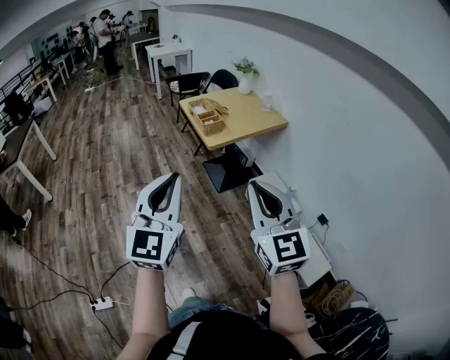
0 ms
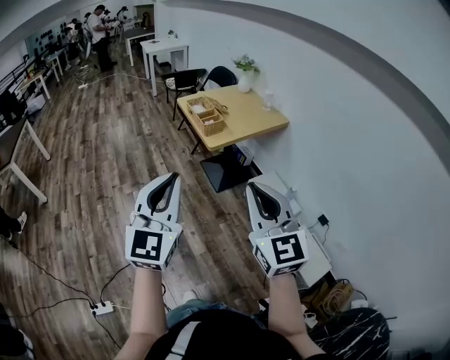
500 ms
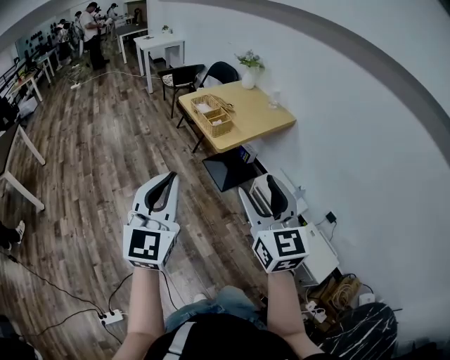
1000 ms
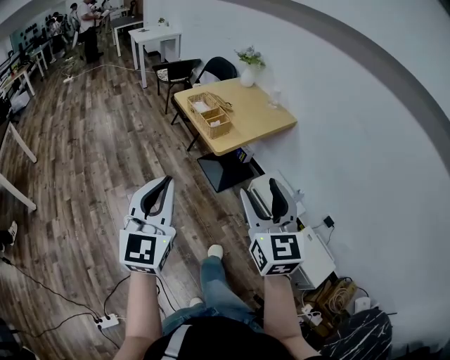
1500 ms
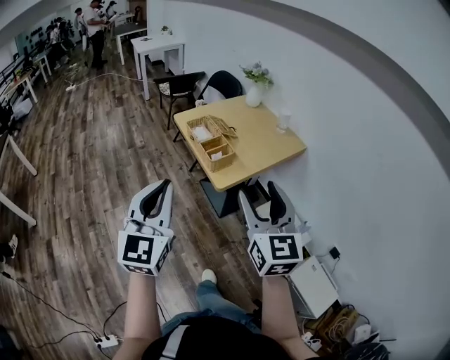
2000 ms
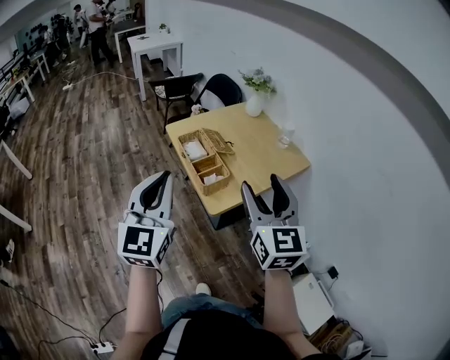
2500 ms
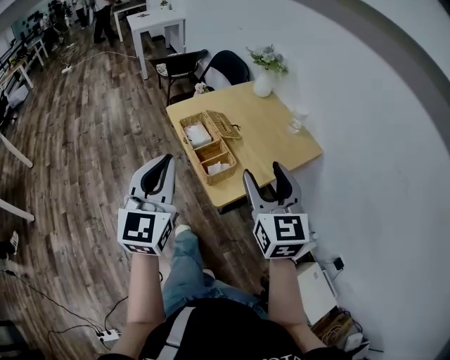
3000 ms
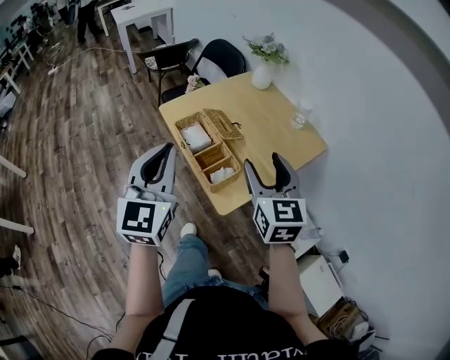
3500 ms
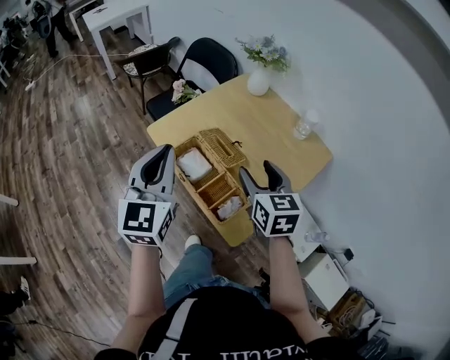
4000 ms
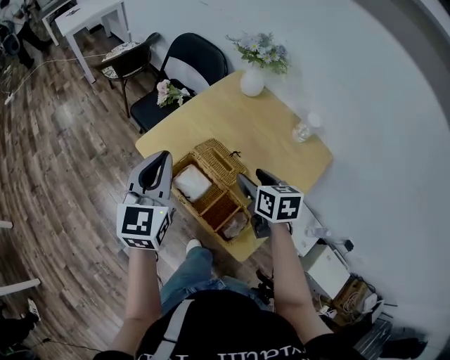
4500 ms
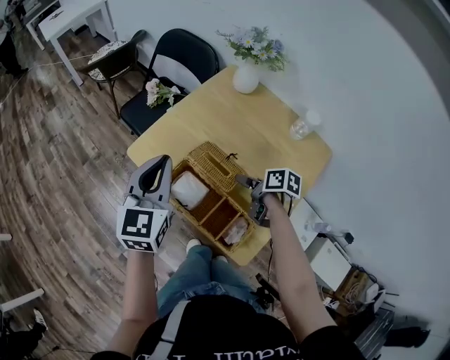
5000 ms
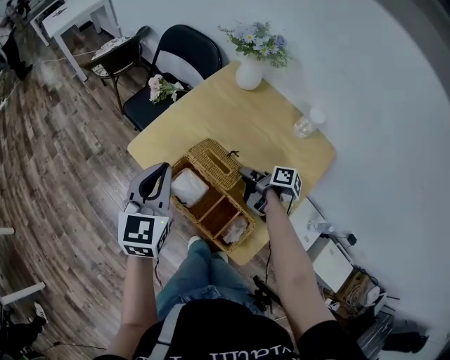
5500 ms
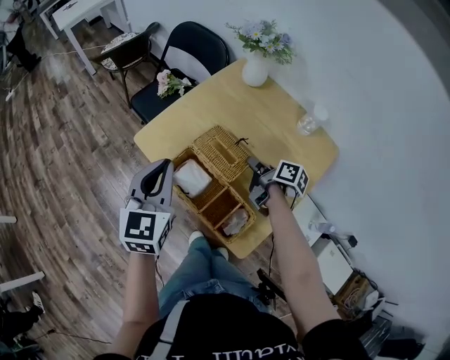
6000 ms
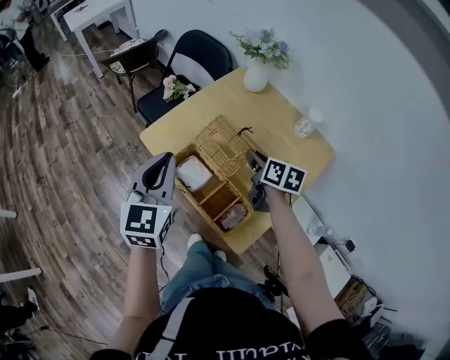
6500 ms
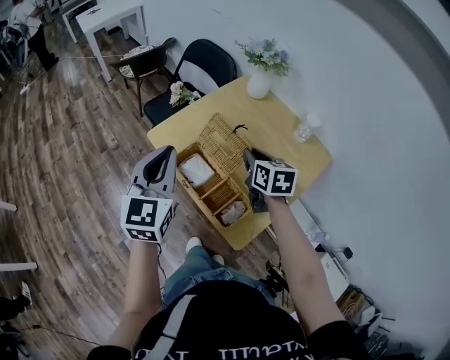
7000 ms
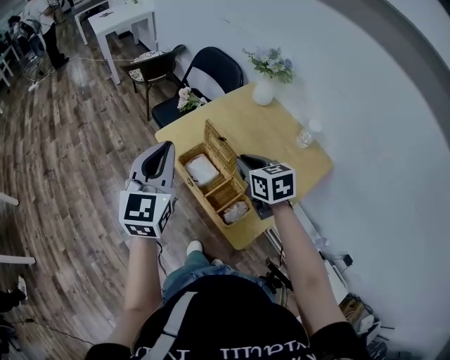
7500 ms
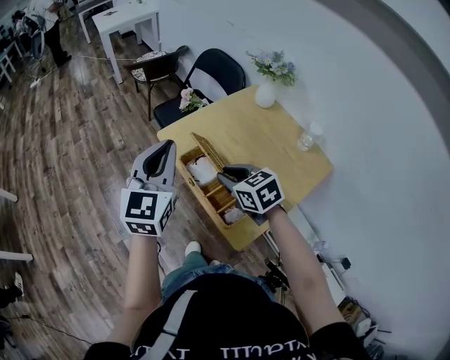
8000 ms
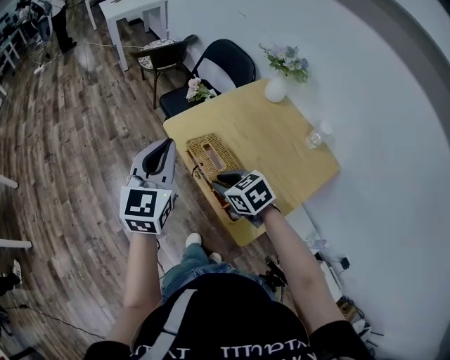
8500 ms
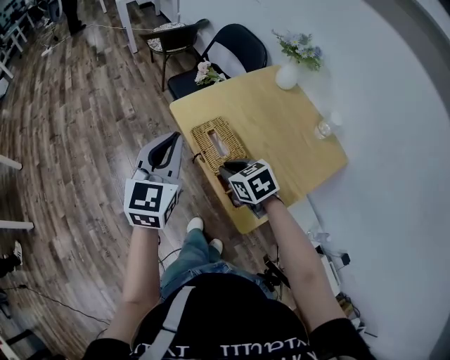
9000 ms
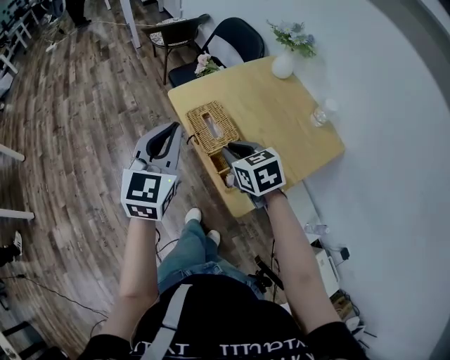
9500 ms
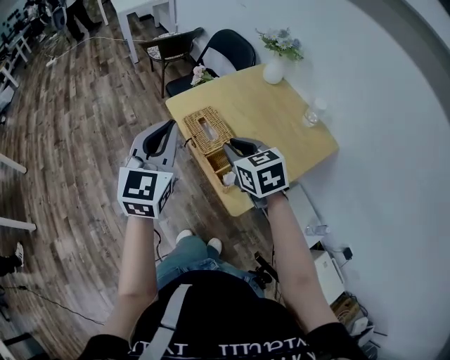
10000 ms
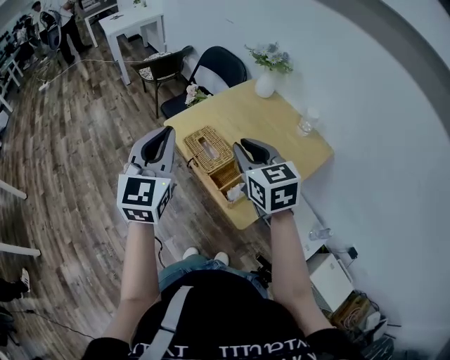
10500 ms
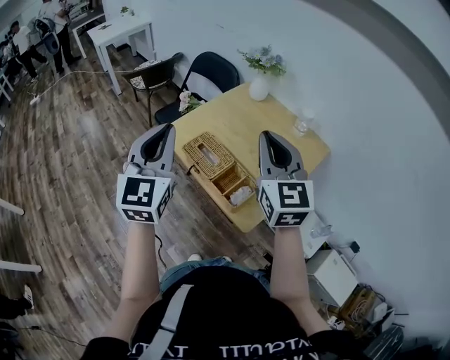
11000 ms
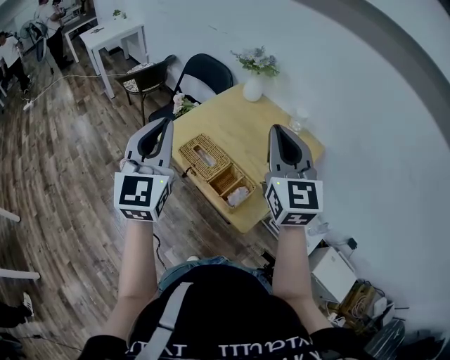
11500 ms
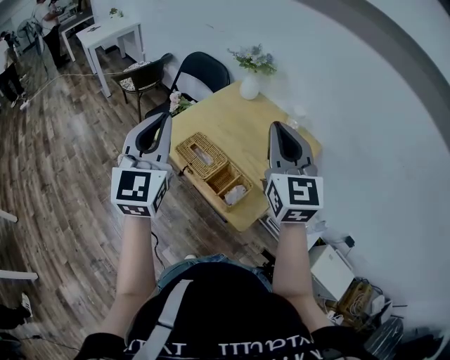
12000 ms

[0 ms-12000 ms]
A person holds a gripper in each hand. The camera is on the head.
0 ms to 2000 ms: Both grippers move forward, about 35 cm. The right gripper opens.
2000 ms to 4000 ms: Both grippers are carried forward, roughly 50 cm. The right gripper rotates approximately 30 degrees.
4000 ms to 6000 ms: The left gripper heads downward and forward, covering approximately 15 cm. Meanwhile the right gripper travels downward and forward by about 20 cm, rolls clockwise, seen from behind, by about 70 degrees, and closes.
6000 ms to 8000 ms: The right gripper moves to the left, upward and backward, about 25 cm, and rolls counterclockwise, seen from behind, by approximately 80 degrees. The left gripper is displaced upward and backward by some 15 cm.
8000 ms to 10000 ms: The grippers both shift backward by some 10 cm.
10000 ms to 12000 ms: The right gripper heads upward, covering approximately 20 cm, and tips its fingers upward by about 40 degrees. The left gripper travels upward by about 10 cm.

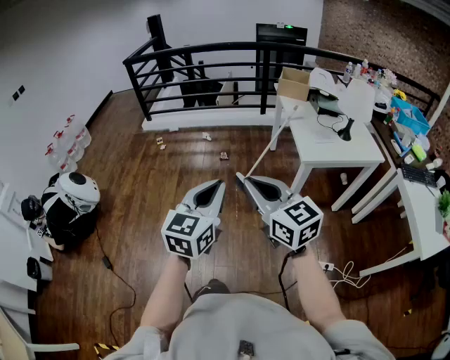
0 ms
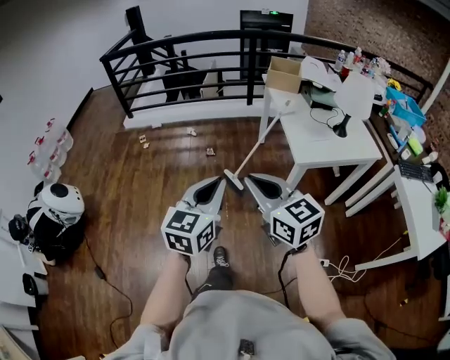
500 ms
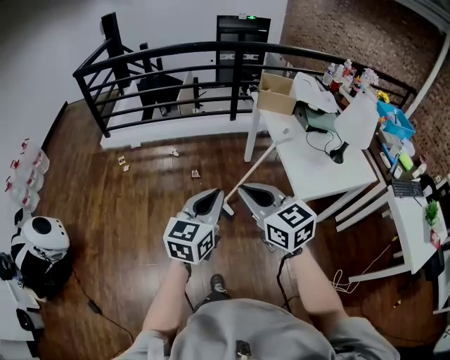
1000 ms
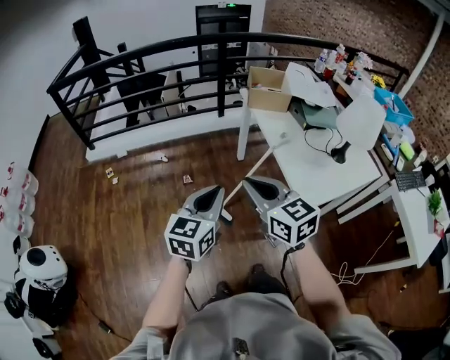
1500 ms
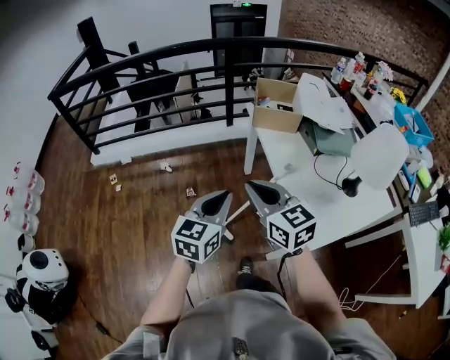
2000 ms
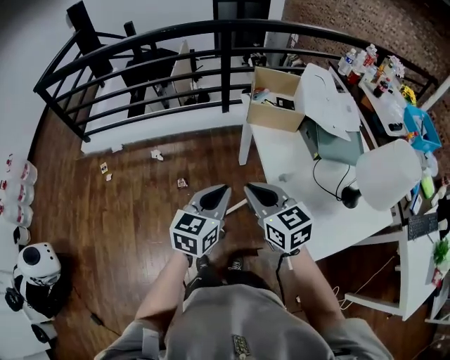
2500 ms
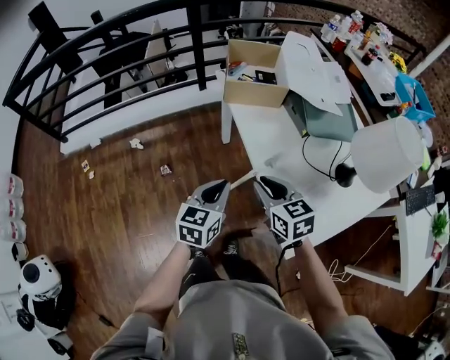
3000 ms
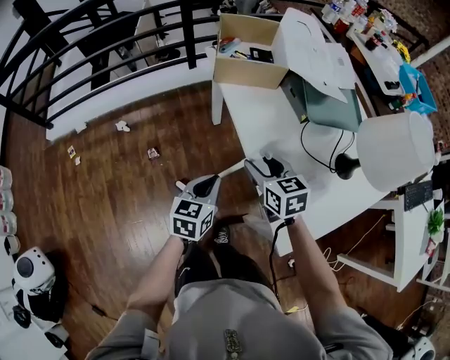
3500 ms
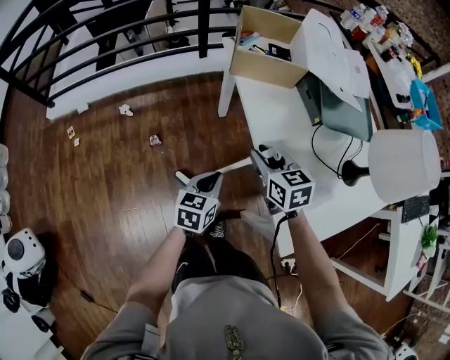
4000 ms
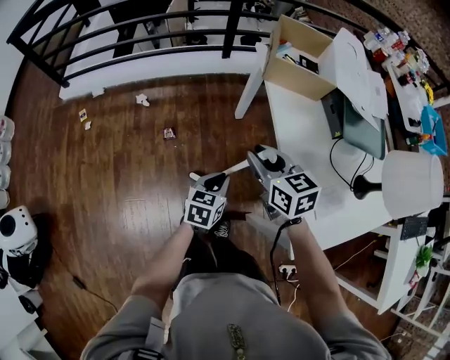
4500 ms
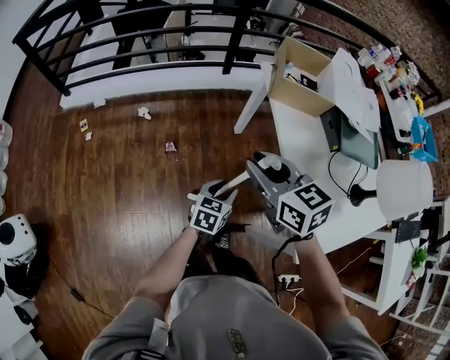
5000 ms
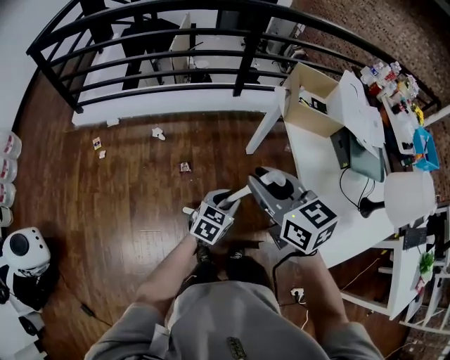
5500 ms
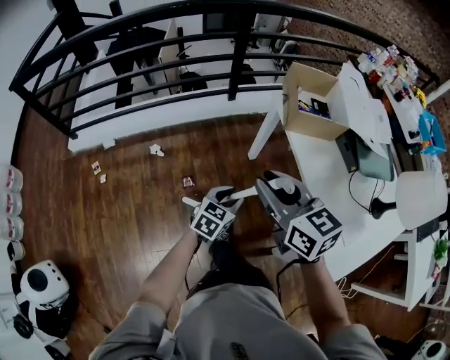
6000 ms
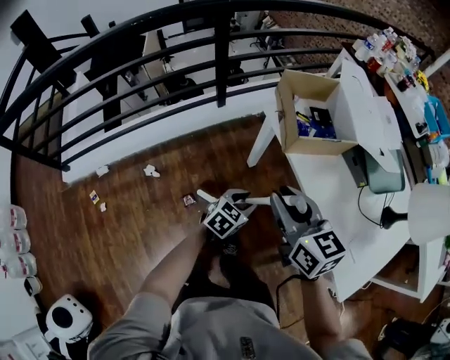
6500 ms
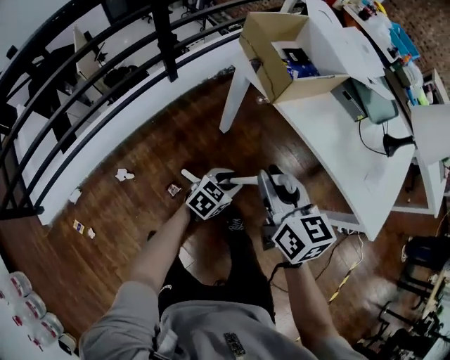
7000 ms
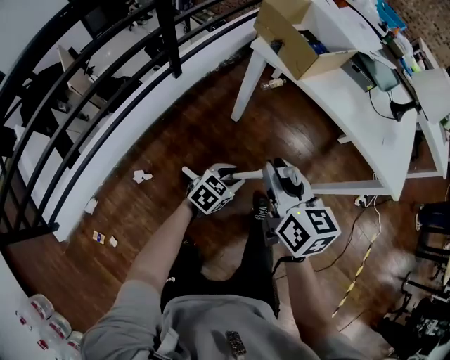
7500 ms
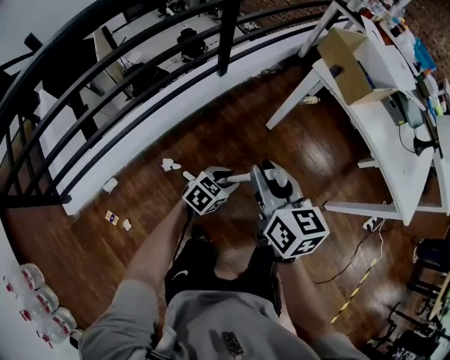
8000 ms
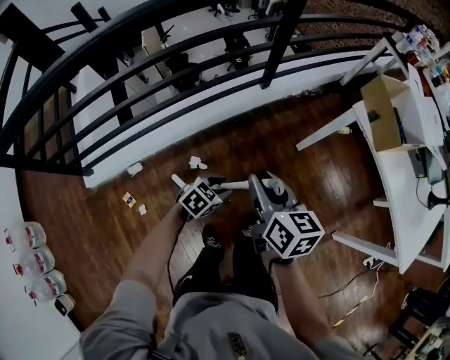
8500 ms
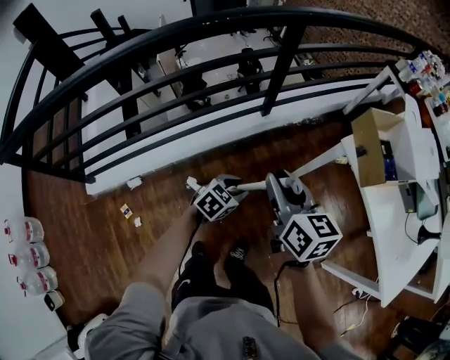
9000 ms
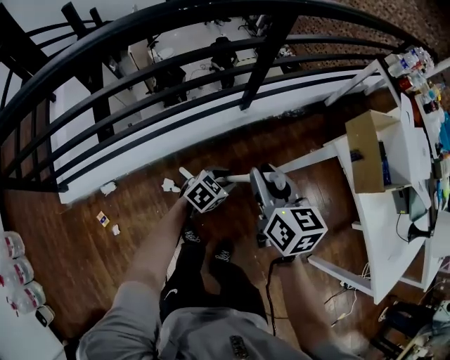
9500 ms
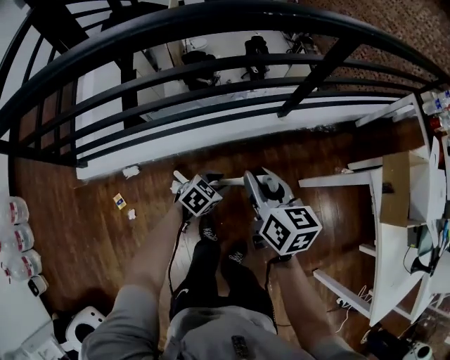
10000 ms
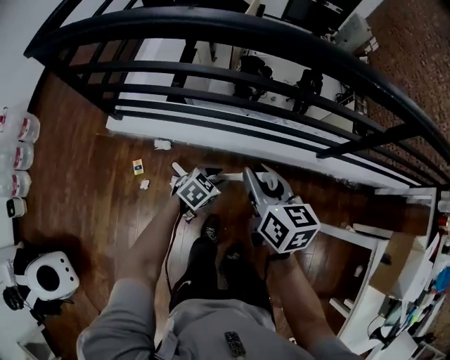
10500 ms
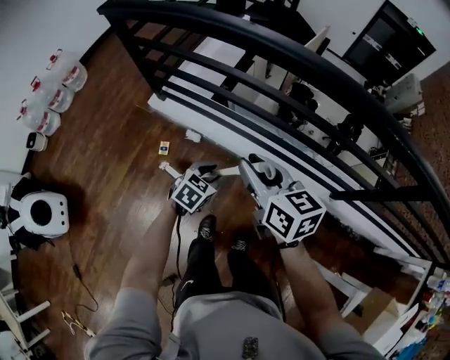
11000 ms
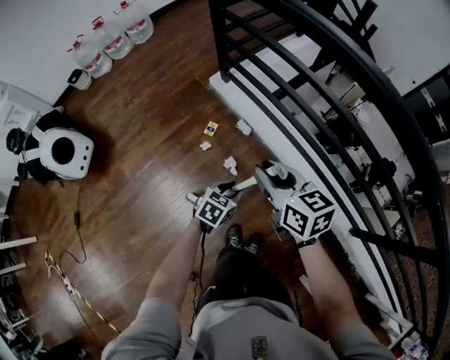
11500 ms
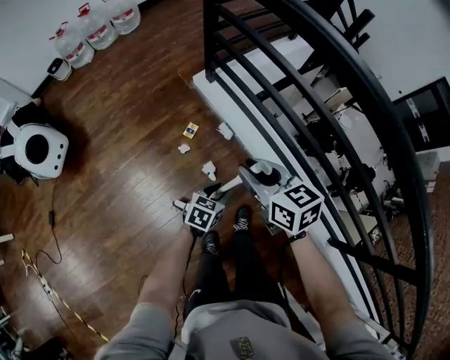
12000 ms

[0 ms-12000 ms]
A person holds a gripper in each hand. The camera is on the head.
0 ms to 2000 ms: The pair of grippers is taken forward, about 60 cm.
2000 ms to 4000 ms: The left gripper travels downward and forward by roughly 30 cm, and swivels approximately 20 degrees, while the right gripper heads downward, forward and to the right, covering roughly 30 cm, swivels some 20 degrees, and opens its fingers.
4000 ms to 6000 ms: The left gripper is displaced to the left and forward by some 15 cm, and opens. Meanwhile the right gripper is displaced to the left and upward by about 30 cm.
6000 ms to 8000 ms: The right gripper moves approximately 35 cm, and changes its angle by about 40 degrees. The left gripper moves about 35 cm, and rotates about 40 degrees.
8000 ms to 10000 ms: The right gripper goes upward and returns, roughly 5 cm each way, and rotates about 30 degrees. Meanwhile the left gripper travels upward and back again, approximately 10 cm each way, and rotates some 30 degrees.
10000 ms to 12000 ms: The left gripper reaches approximately 10 cm upward, then returns, and rotates some 90 degrees; the right gripper moves roughly 10 cm upward and comes back, and changes its angle by some 90 degrees.

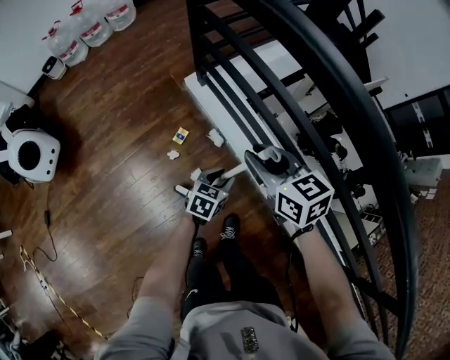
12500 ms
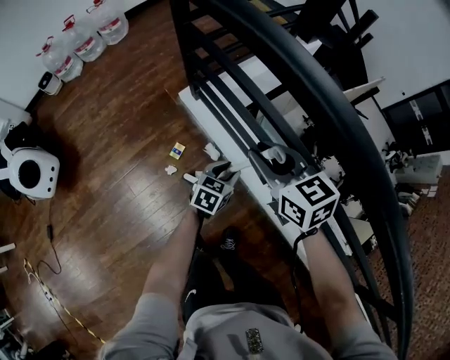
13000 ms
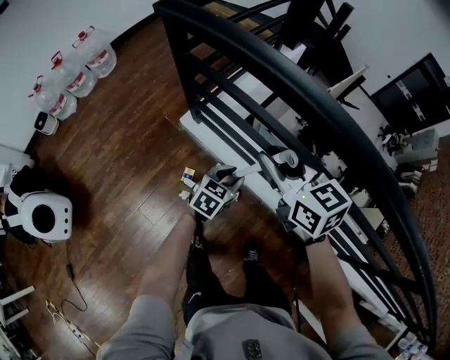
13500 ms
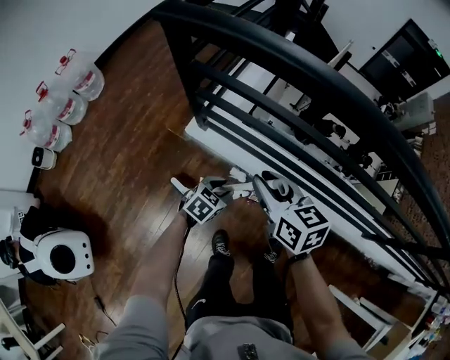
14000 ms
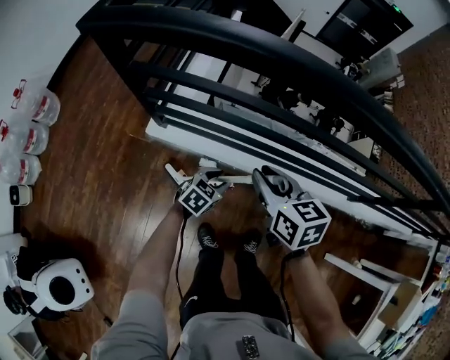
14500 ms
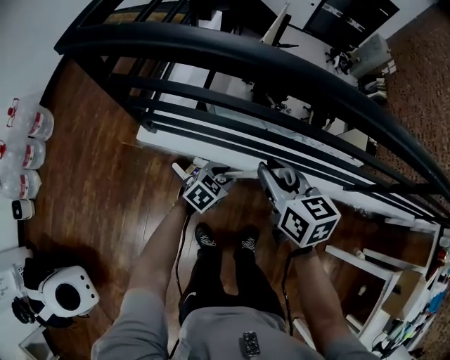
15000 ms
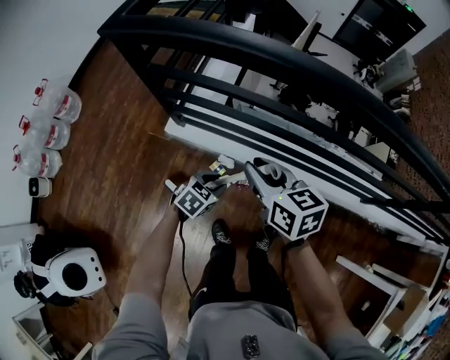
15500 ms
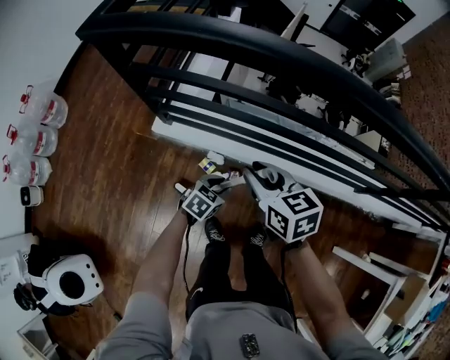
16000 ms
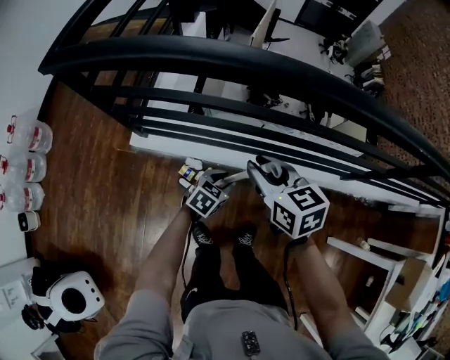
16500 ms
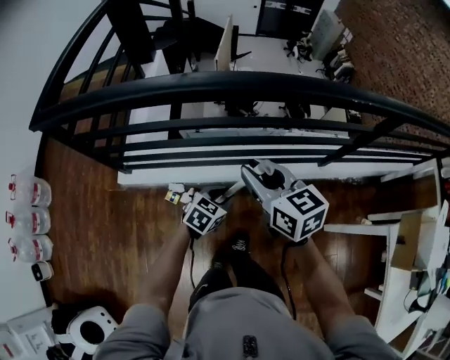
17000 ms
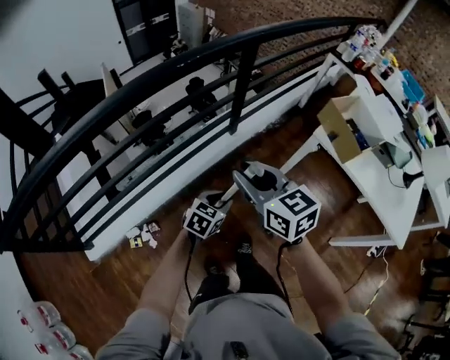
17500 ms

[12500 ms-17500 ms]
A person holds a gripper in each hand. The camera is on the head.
12500 ms to 15000 ms: The right gripper moves up and down over roughly 10 cm, changing direction 2 times, and changes its angle by about 50 degrees, while the left gripper swings up and down, about 10 cm each way, with 2 reversals, and rotates about 60 degrees.
15000 ms to 17500 ms: Both grippers are carried about 50 cm. The right gripper changes its angle by about 40 degrees, while the left gripper swivels roughly 40 degrees.
